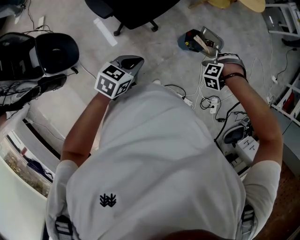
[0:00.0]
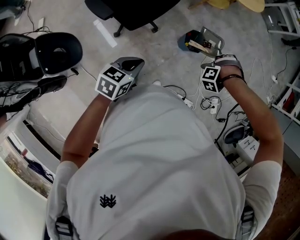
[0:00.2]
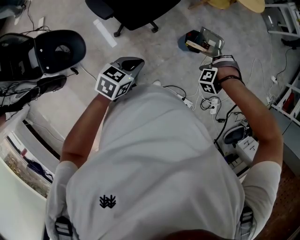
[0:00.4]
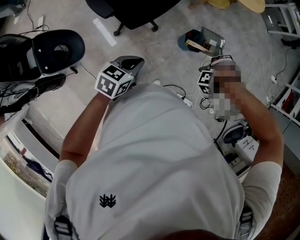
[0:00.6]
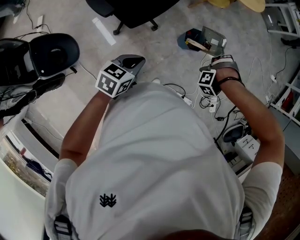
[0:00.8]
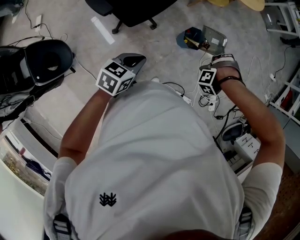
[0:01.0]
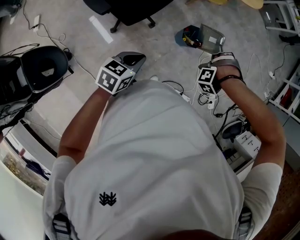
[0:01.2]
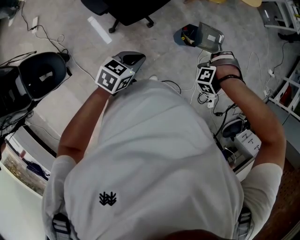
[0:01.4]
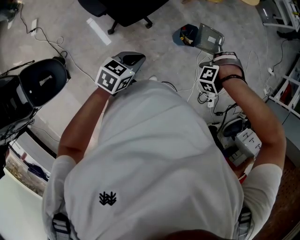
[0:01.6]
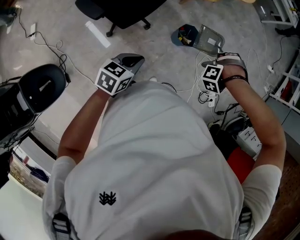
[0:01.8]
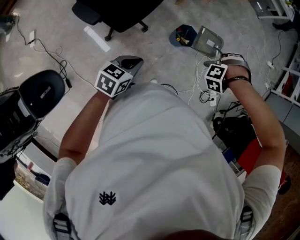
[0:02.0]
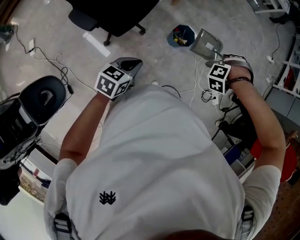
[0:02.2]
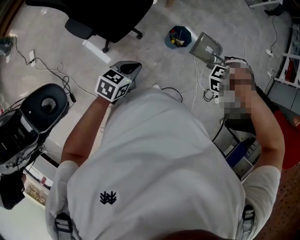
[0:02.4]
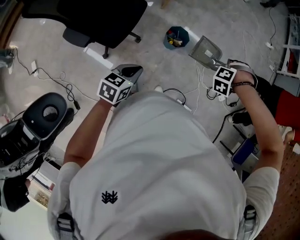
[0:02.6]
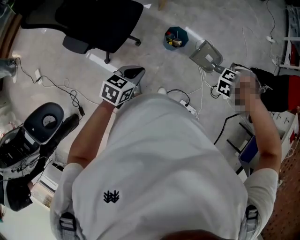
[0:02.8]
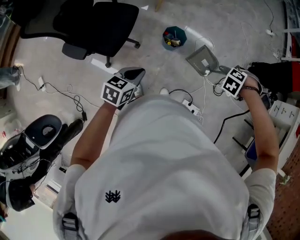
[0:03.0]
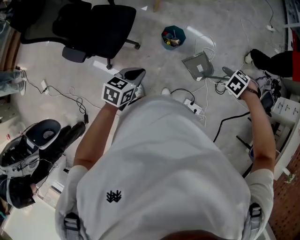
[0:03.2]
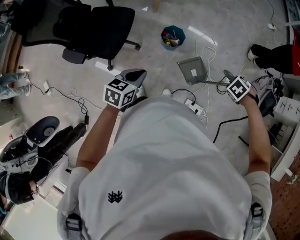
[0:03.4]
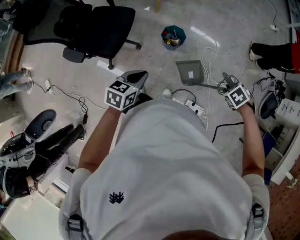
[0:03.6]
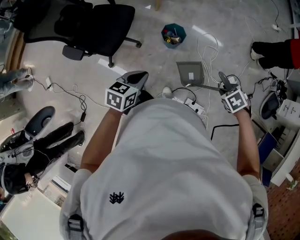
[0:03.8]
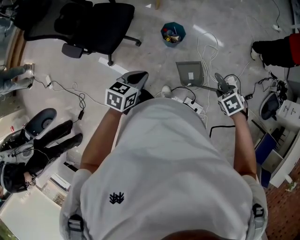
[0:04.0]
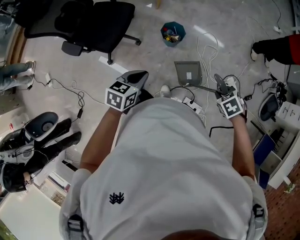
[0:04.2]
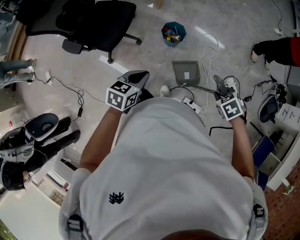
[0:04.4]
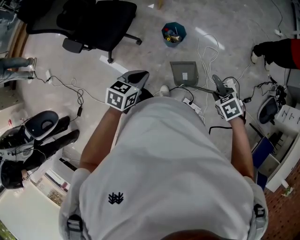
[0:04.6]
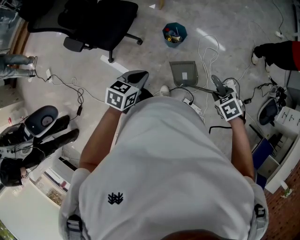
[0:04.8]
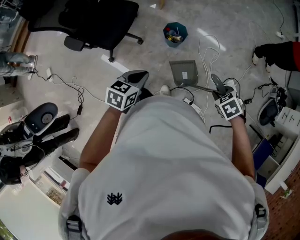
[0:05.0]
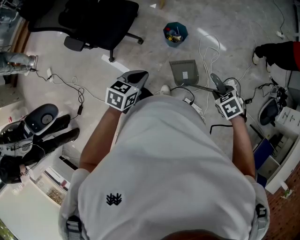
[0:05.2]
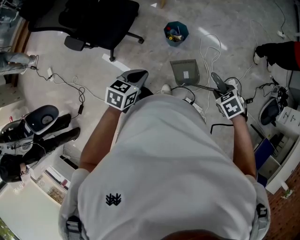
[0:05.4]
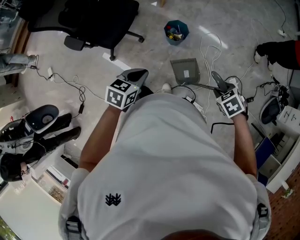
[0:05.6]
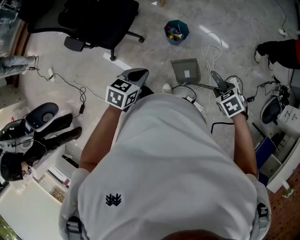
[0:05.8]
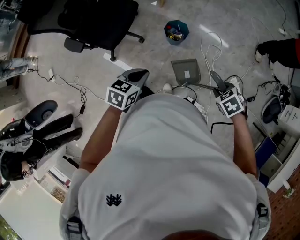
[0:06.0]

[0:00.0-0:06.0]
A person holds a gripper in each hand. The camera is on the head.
0:01.6 to 0:03.0: The left gripper shifts by approximately 10 cm.
0:03.0 to 0:04.4: The left gripper ends up some 10 cm from where it was.

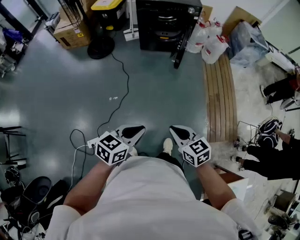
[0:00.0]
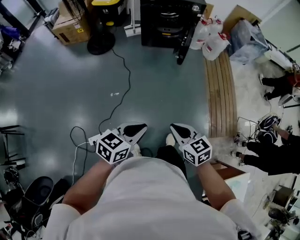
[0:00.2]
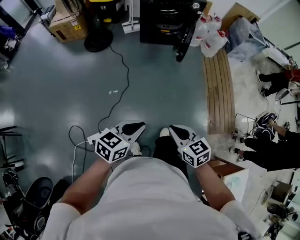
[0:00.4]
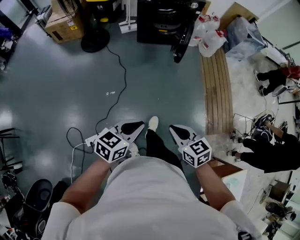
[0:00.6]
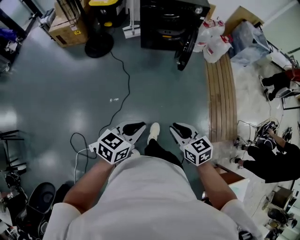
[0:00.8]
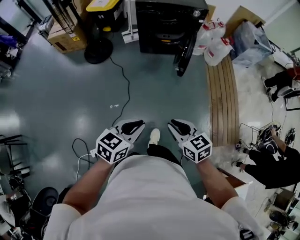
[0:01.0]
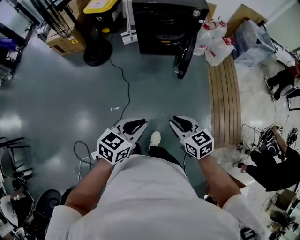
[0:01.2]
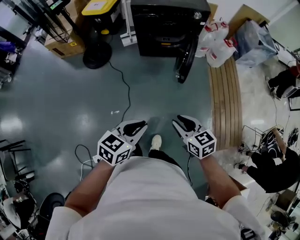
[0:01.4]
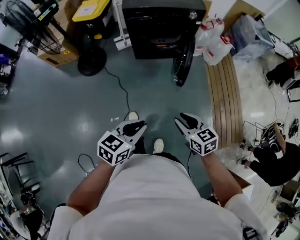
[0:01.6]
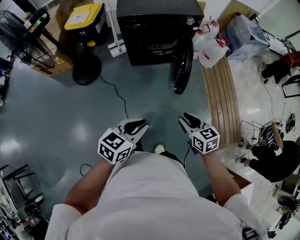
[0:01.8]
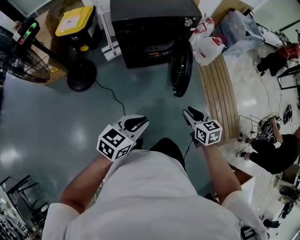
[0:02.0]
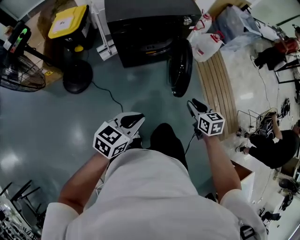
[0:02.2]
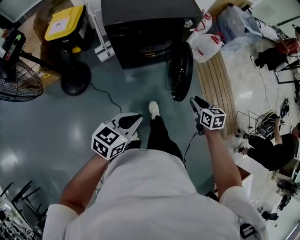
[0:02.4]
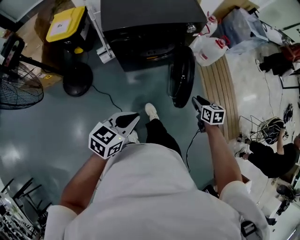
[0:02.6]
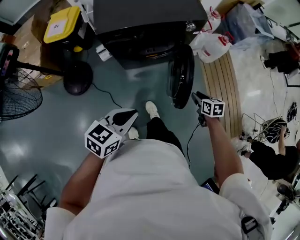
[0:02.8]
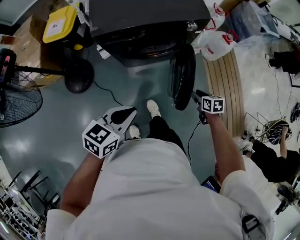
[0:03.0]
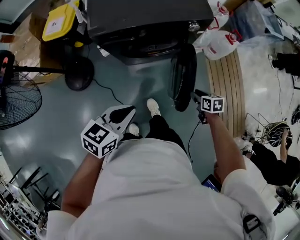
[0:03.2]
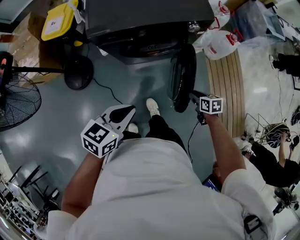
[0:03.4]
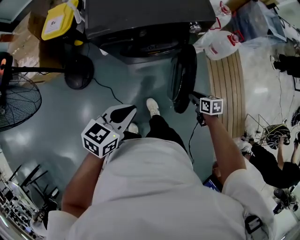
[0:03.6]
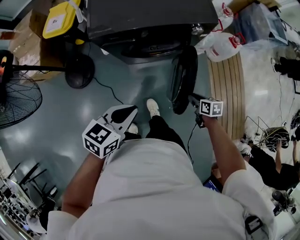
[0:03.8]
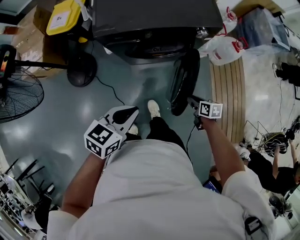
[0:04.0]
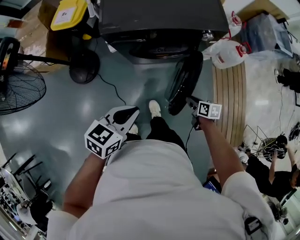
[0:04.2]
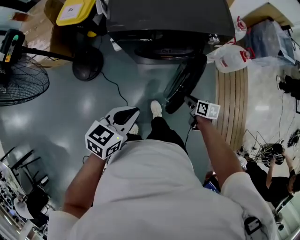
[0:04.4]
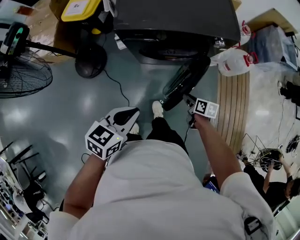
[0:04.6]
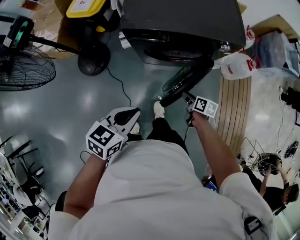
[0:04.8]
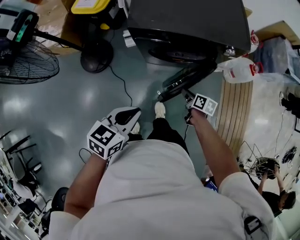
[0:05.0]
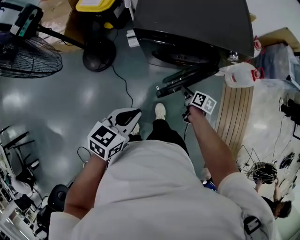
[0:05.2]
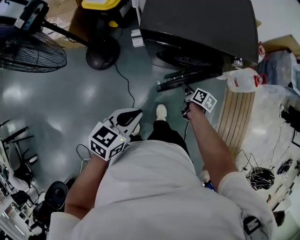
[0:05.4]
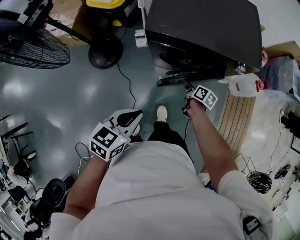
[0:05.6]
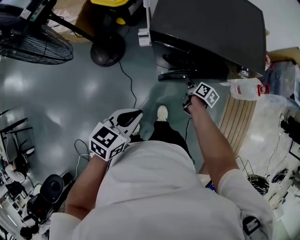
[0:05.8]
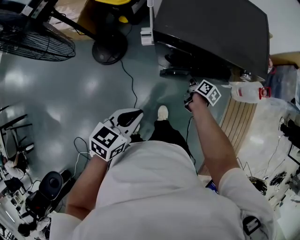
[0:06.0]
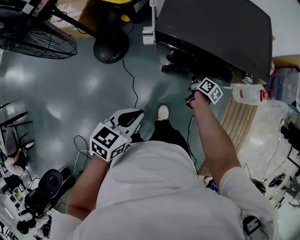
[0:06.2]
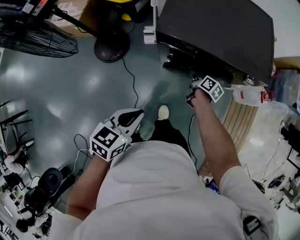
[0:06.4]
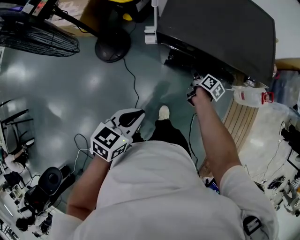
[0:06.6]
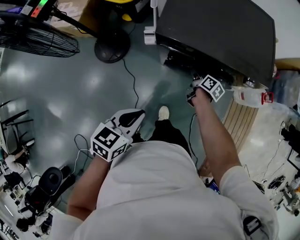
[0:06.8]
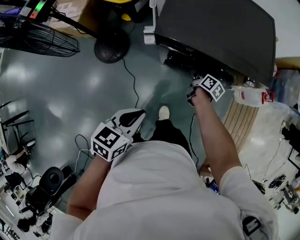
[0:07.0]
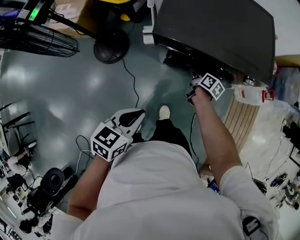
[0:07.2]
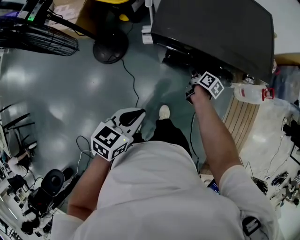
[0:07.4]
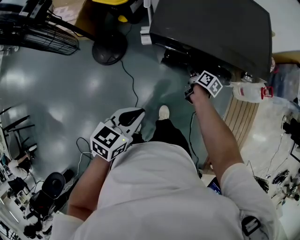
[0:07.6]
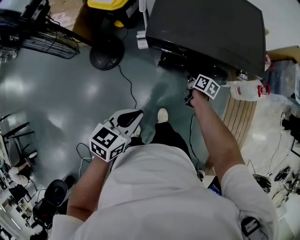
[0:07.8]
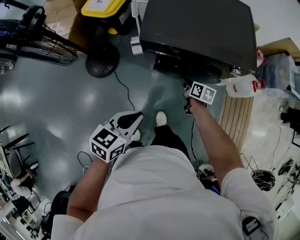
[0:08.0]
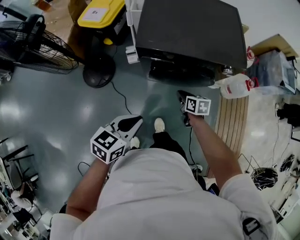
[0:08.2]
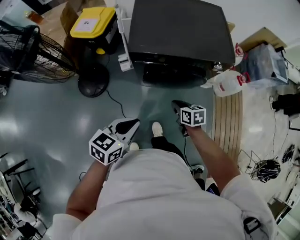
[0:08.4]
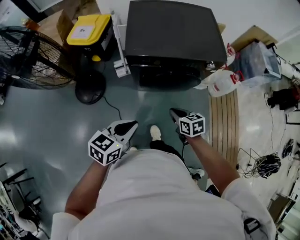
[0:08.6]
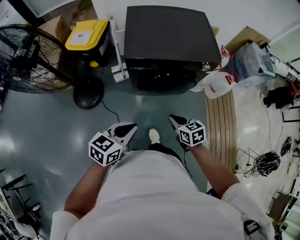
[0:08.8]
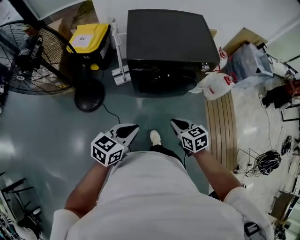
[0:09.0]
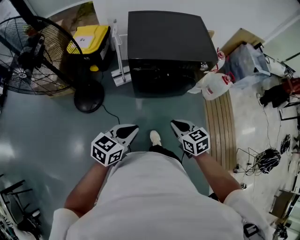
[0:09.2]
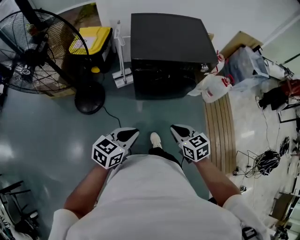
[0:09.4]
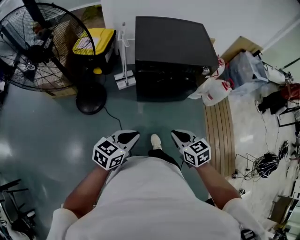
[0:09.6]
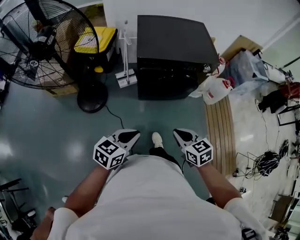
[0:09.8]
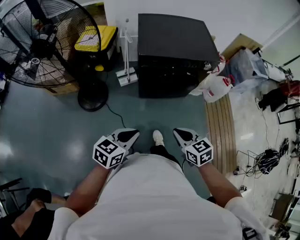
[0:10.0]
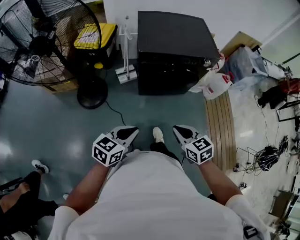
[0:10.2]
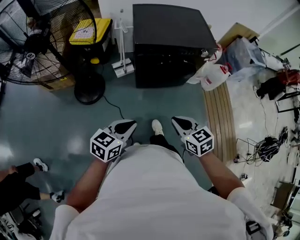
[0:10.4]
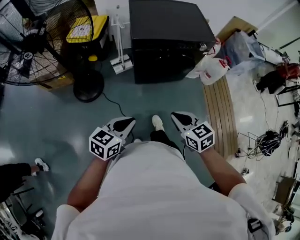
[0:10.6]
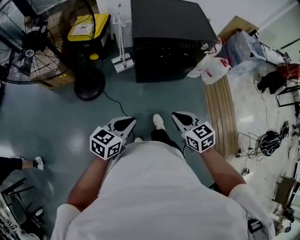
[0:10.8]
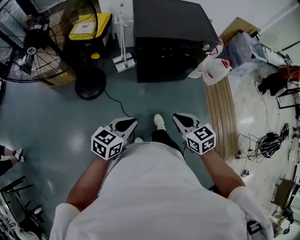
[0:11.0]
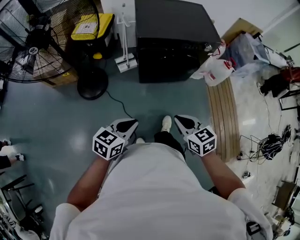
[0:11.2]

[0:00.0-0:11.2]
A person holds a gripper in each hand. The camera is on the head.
0:00.0 to 0:01.6: Both grippers move forward, about 30 cm. The right gripper opens its fingers.
0:01.6 to 0:03.2: The left gripper travels forward by about 35 cm. The right gripper is displaced forward and downward by some 50 cm, and swivels some 30 degrees.
0:03.2 to 0:04.8: The right gripper goes some 15 cm to the left and forward. Meanwhile the left gripper shifts by approximately 5 cm.
0:04.8 to 0:06.4: The left gripper goes approximately 5 cm to the left, while the right gripper travels forward and to the left by approximately 20 cm.
0:06.4 to 0:08.0: The grippers move only a little.
0:08.0 to 0:09.6: The right gripper moves backward and upward, about 40 cm, and changes its angle by about 40 degrees, while the left gripper shifts some 15 cm backward.
0:09.6 to 0:11.2: The two grippers go roughly 5 cm backward.

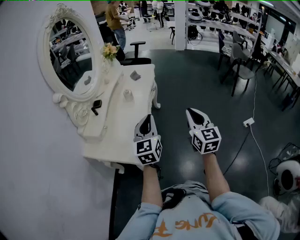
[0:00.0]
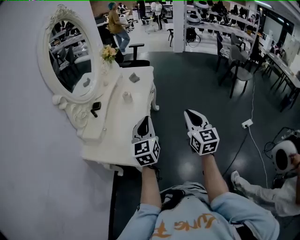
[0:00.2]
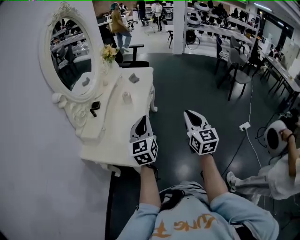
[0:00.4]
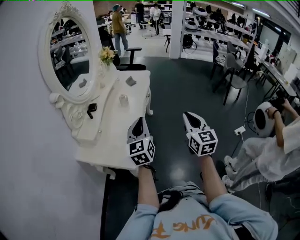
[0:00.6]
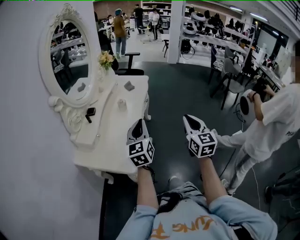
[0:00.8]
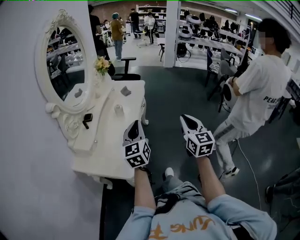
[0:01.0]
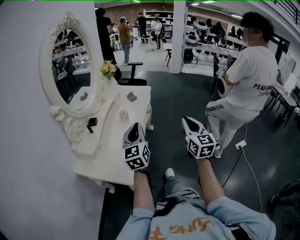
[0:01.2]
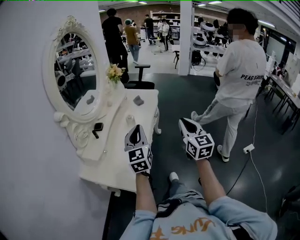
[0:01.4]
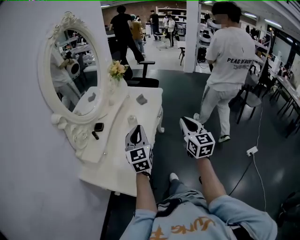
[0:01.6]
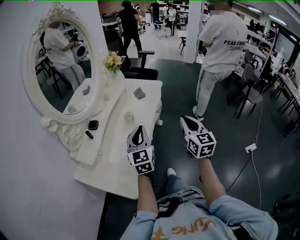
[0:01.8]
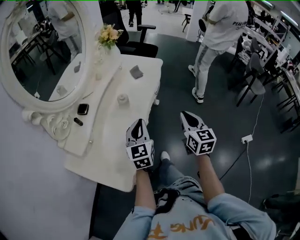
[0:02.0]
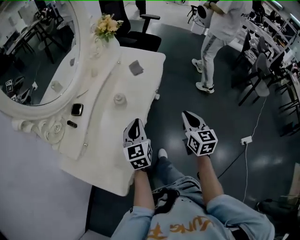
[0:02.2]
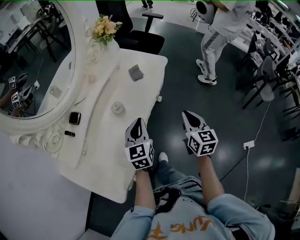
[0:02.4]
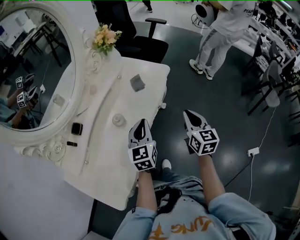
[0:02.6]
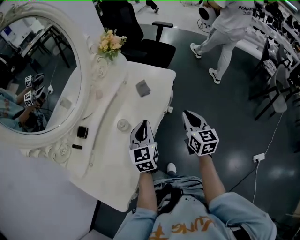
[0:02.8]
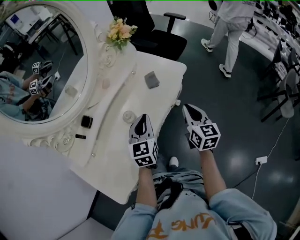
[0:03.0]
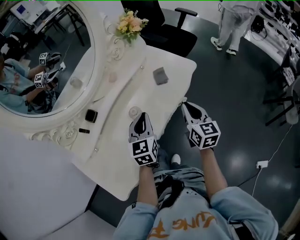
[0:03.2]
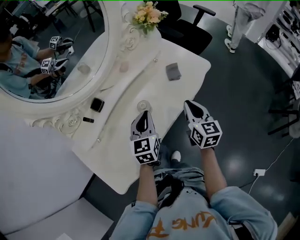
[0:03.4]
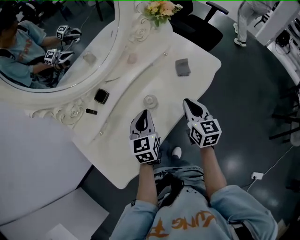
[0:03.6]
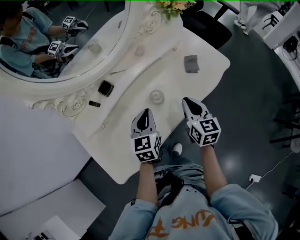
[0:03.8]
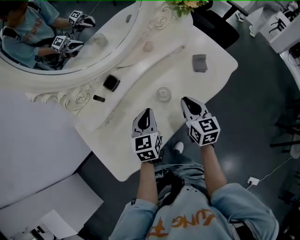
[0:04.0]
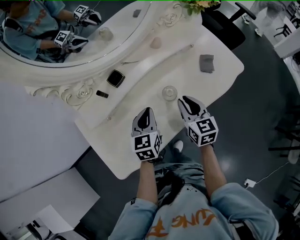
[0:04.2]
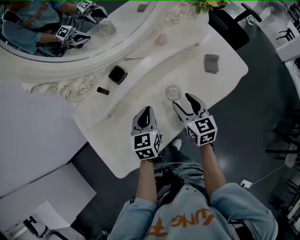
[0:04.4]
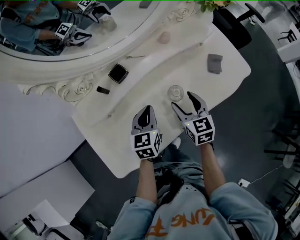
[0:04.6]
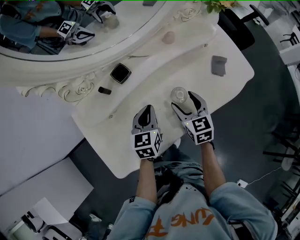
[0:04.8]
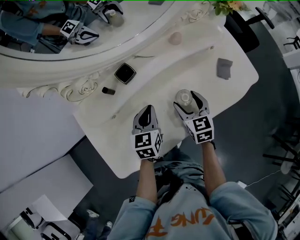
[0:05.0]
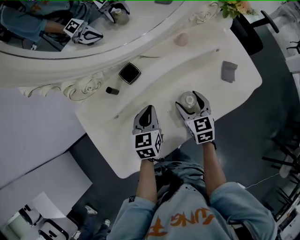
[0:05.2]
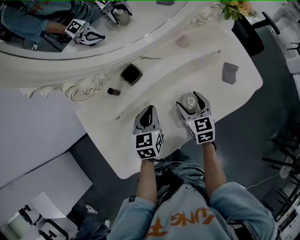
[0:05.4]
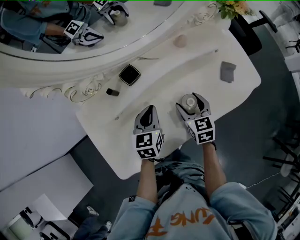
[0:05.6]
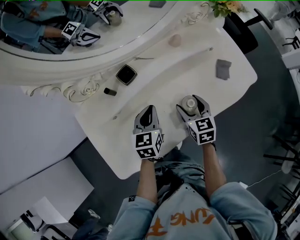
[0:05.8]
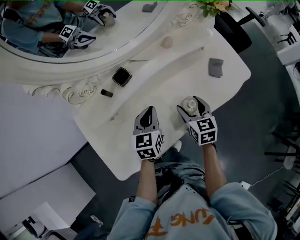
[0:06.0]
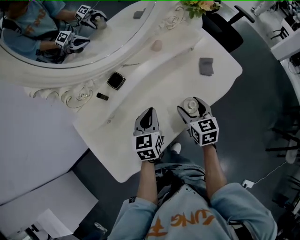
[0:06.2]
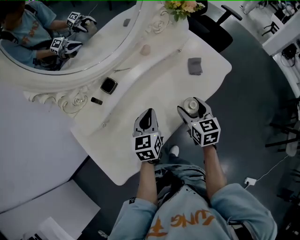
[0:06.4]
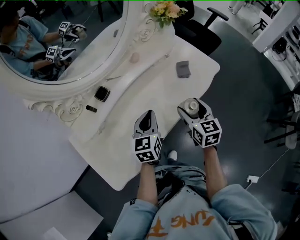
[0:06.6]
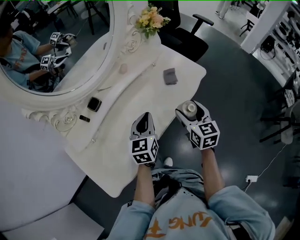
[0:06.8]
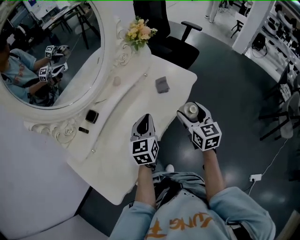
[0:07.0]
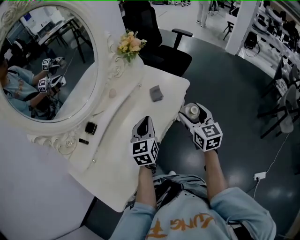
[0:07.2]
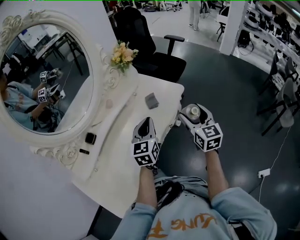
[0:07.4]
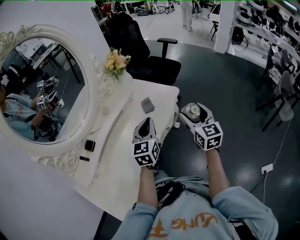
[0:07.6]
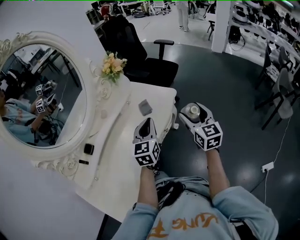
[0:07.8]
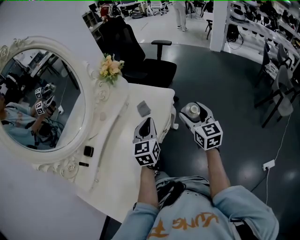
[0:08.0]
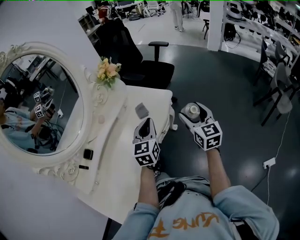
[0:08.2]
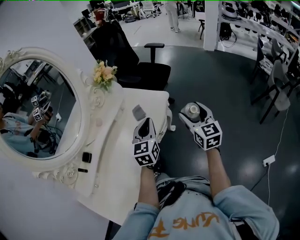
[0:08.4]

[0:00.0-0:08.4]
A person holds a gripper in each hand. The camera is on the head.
0:00.0 to 0:01.4: The right gripper moves forward, approximately 10 cm. The left gripper goes roughly 10 cm forward and to the left.
0:01.4 to 0:02.8: Both grippers move forward and downward, some 35 cm. The left gripper turns by roughly 20 degrees. The right gripper changes its angle by approximately 20 degrees.
0:02.8 to 0:04.2: The right gripper changes place by about 25 cm, and changes its angle by approximately 40 degrees, while the left gripper shifts by roughly 20 cm, and turns by approximately 30 degrees.
0:04.2 to 0:05.6: The right gripper moves downward and forward, roughly 10 cm, and opens its fingers. The left gripper moves about 10 cm.
0:05.6 to 0:07.0: The left gripper goes about 25 cm to the right and upward, and rotates roughly 30 degrees, while the right gripper is displaced to the right, upward and backward by roughly 30 cm, and rotates roughly 30 degrees.
0:07.0 to 0:08.4: The two grippers go about 15 cm to the right and upward.
